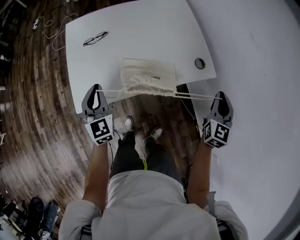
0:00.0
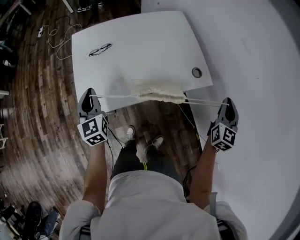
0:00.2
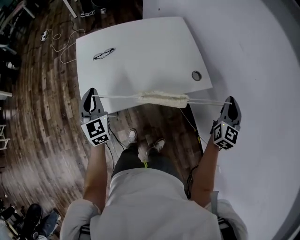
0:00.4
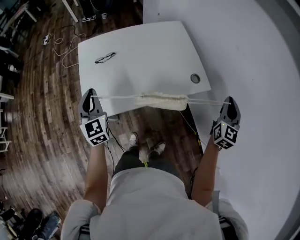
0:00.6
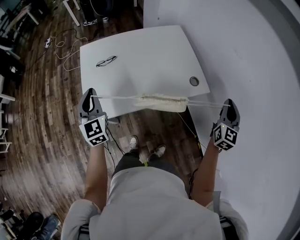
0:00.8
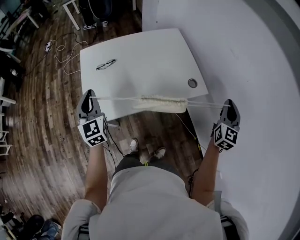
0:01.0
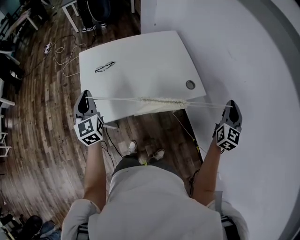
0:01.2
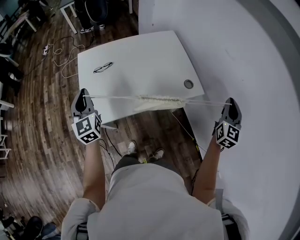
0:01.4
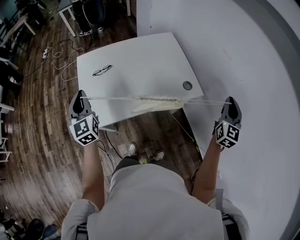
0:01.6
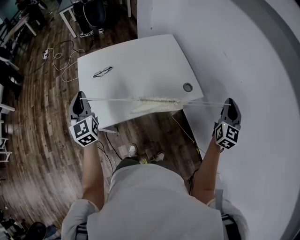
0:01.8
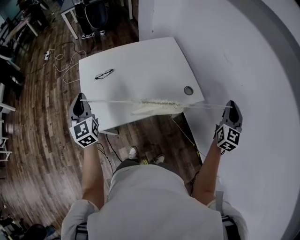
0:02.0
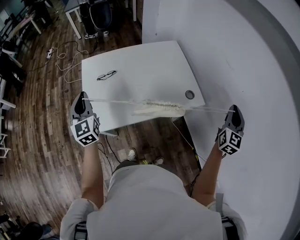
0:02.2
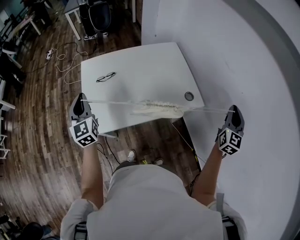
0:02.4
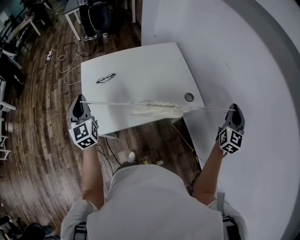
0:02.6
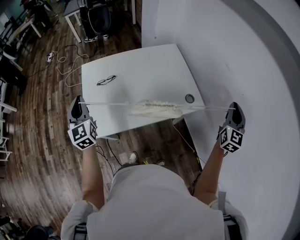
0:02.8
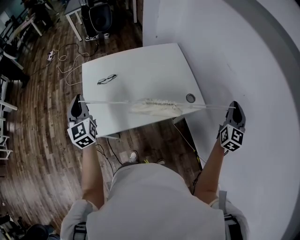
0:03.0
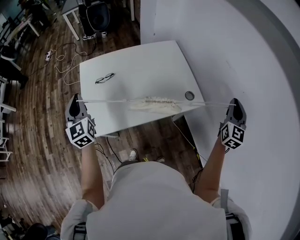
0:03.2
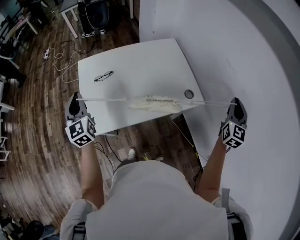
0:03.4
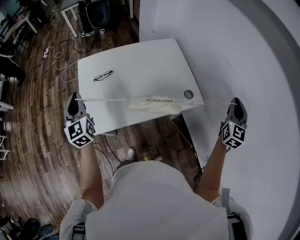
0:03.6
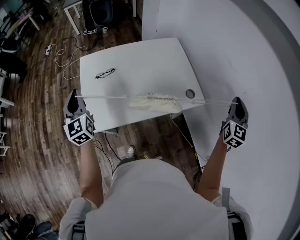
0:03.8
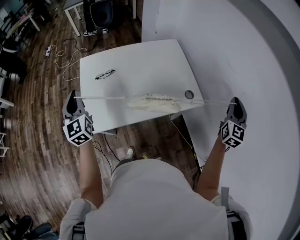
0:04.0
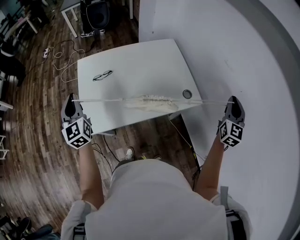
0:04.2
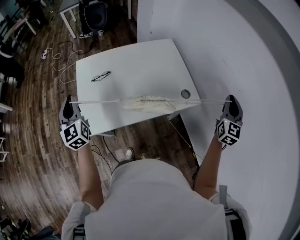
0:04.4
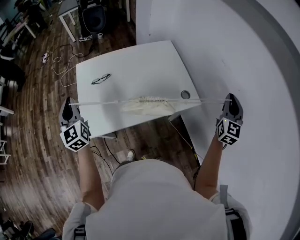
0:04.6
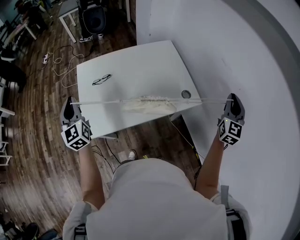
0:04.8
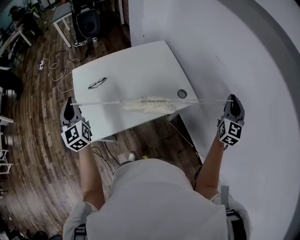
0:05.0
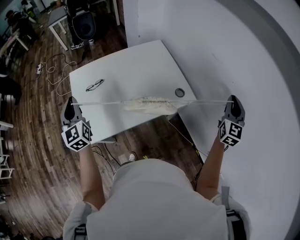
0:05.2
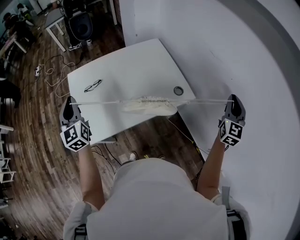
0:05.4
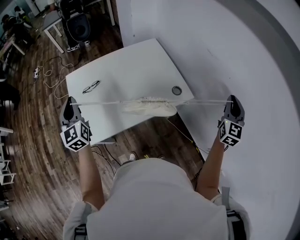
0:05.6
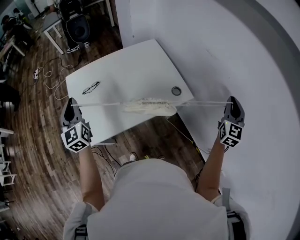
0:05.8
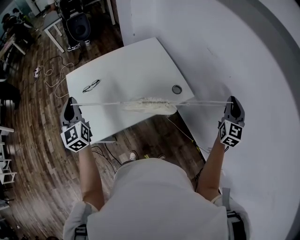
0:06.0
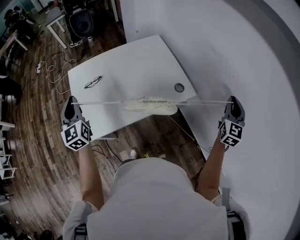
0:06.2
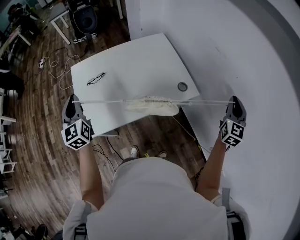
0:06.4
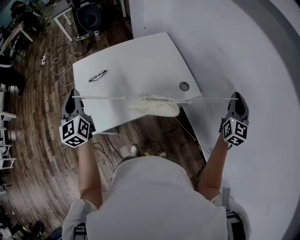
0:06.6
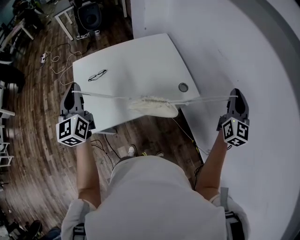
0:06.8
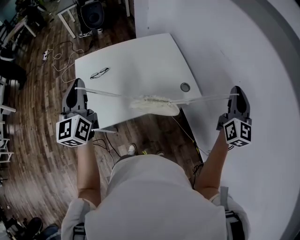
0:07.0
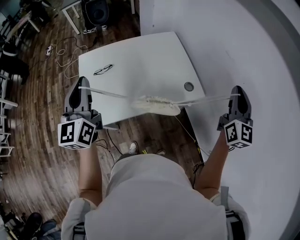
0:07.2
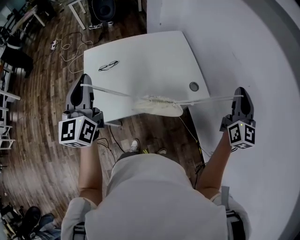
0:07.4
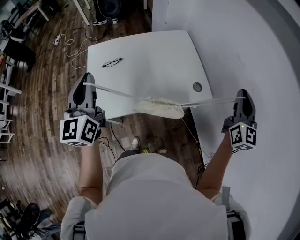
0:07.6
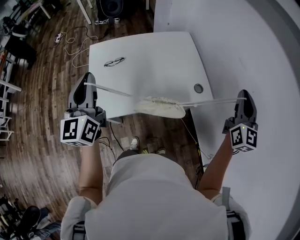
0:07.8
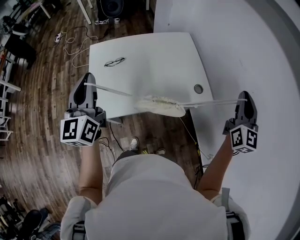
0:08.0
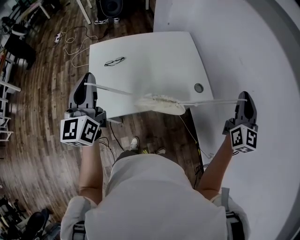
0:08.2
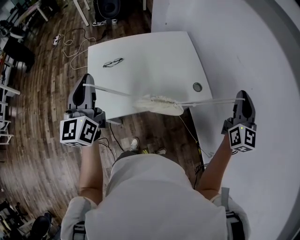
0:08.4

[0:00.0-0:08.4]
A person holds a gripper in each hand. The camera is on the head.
0:00.0 to 0:01.4: The left gripper travels upward by about 15 cm; the right gripper heads upward and to the right, covering roughly 15 cm.
0:01.4 to 0:02.8: The right gripper changes place by some 5 cm.
0:02.8 to 0:04.2: The two grippers keep their place.
0:04.2 to 0:05.6: The right gripper travels backward by roughly 5 cm, while the left gripper shifts approximately 5 cm to the right.
0:05.6 to 0:07.0: The left gripper travels upward and to the right by approximately 10 cm; the right gripper heads to the left and upward, covering about 10 cm, and swivels roughly 20 degrees.
0:07.0 to 0:08.4: The right gripper shifts roughly 5 cm to the left.

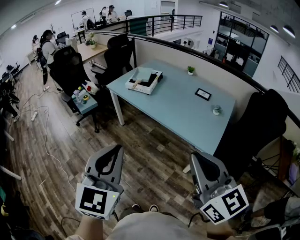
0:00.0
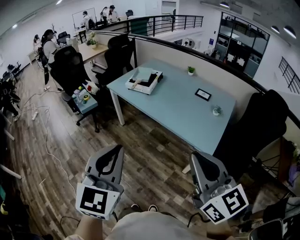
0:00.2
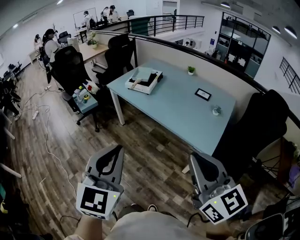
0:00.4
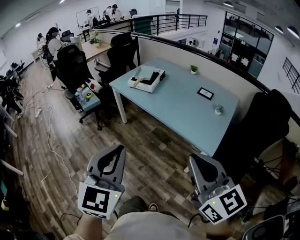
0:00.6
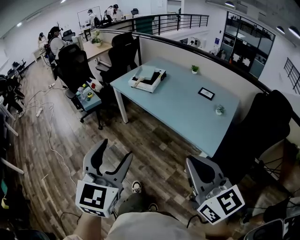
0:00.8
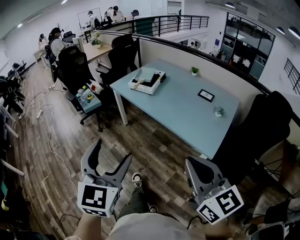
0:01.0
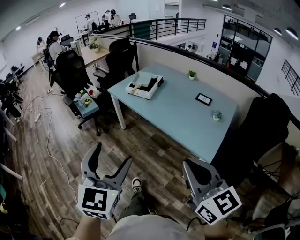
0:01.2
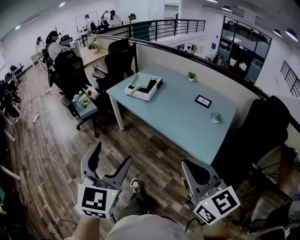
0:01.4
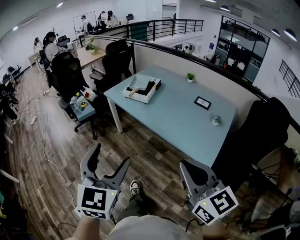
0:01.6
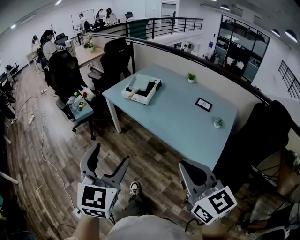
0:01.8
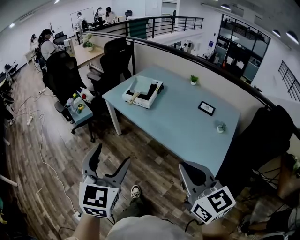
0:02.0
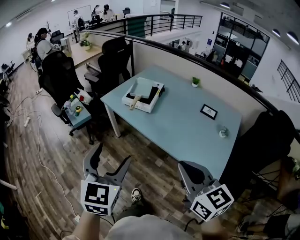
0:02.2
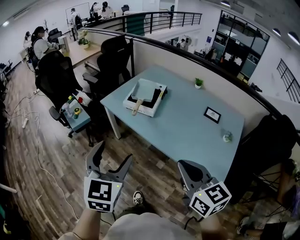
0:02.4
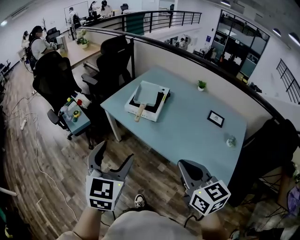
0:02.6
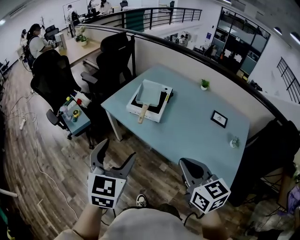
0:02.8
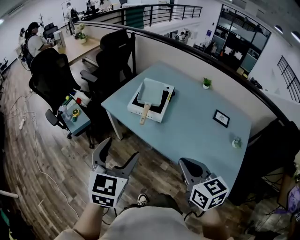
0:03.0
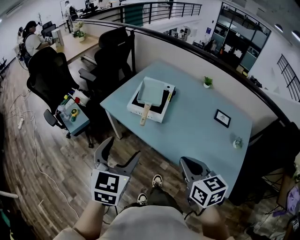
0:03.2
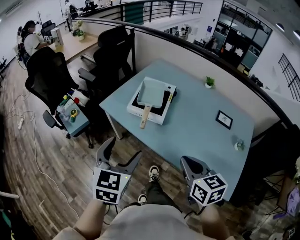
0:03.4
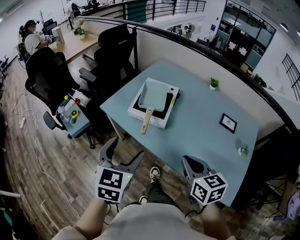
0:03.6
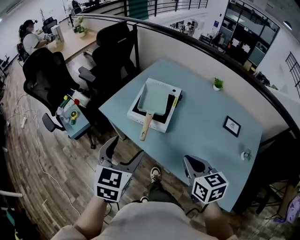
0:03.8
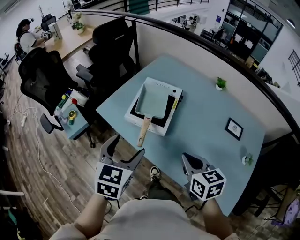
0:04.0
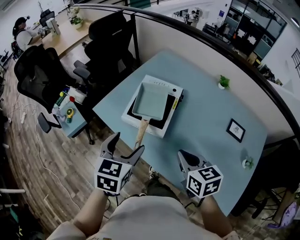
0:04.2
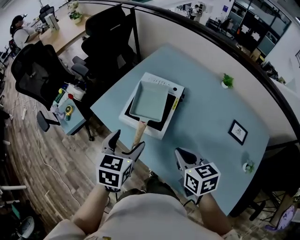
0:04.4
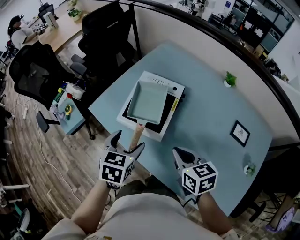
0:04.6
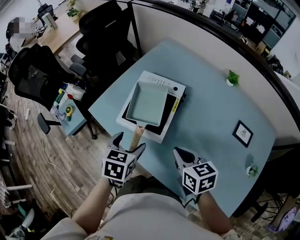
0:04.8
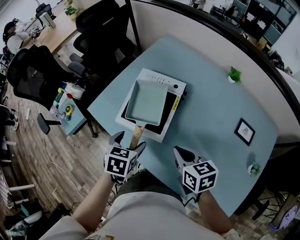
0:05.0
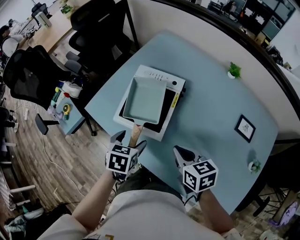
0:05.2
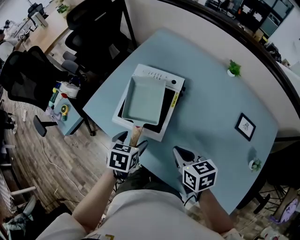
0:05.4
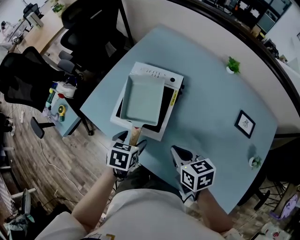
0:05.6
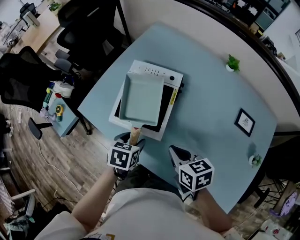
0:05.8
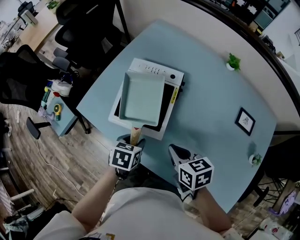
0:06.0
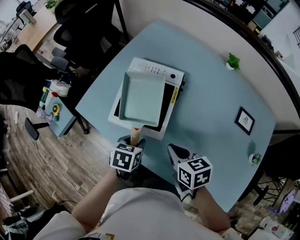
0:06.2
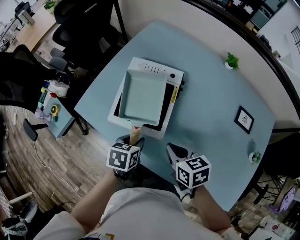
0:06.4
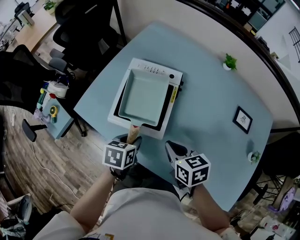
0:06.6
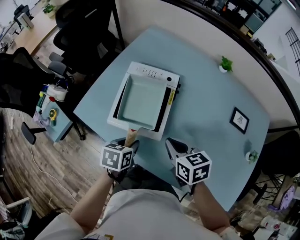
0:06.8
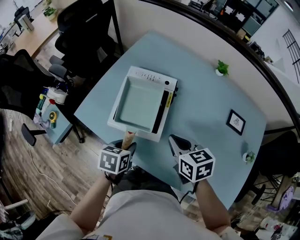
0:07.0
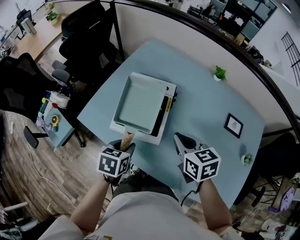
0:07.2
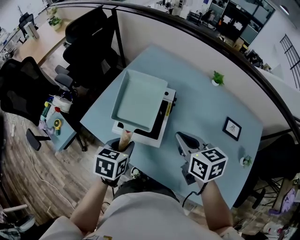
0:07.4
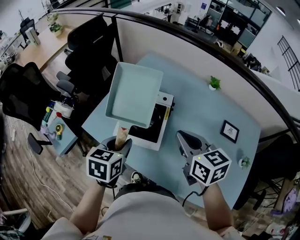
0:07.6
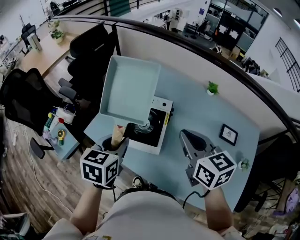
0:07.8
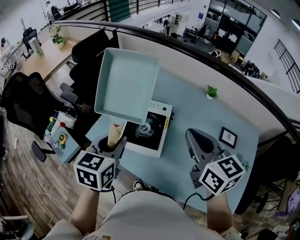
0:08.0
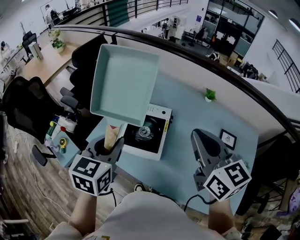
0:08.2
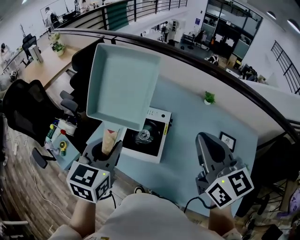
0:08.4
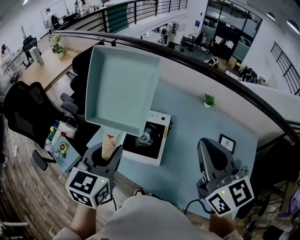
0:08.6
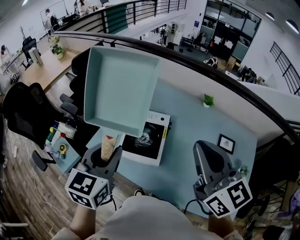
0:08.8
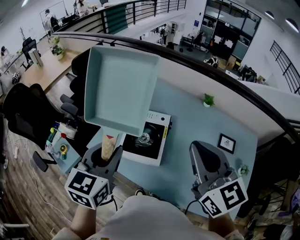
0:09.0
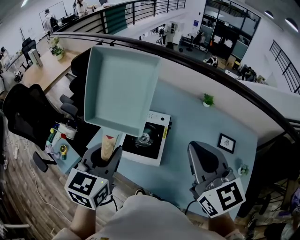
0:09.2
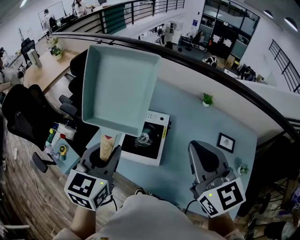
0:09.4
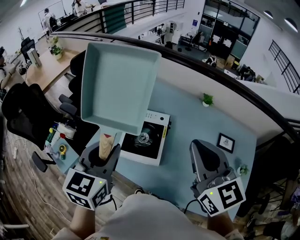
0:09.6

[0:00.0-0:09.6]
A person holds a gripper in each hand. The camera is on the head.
0:00.0 to 0:01.6: Both grippers travel together forward, some 5 cm. The left gripper opens its fingers.
0:01.6 to 0:03.2: Both grippers are carried forward, about 40 cm. The right gripper turns by about 20 degrees.
0:03.2 to 0:04.8: The two grippers go some 35 cm forward and downward. The left gripper rotates some 30 degrees.
0:04.8 to 0:06.4: Both grippers move downward, approximately 10 cm. The left gripper closes its fingers.
0:06.4 to 0:08.0: The grippers both shift upward by roughly 30 cm. The right gripper swivels roughly 40 degrees. The left gripper swivels some 30 degrees.
0:08.0 to 0:09.6: The grippers both shift upward by about 5 cm.

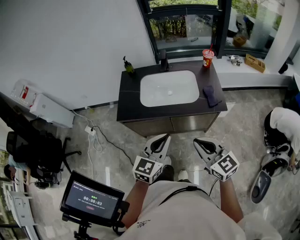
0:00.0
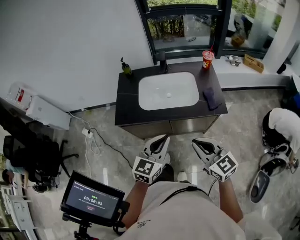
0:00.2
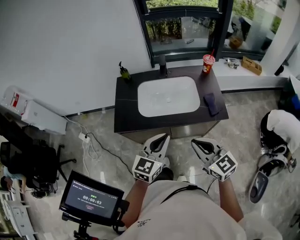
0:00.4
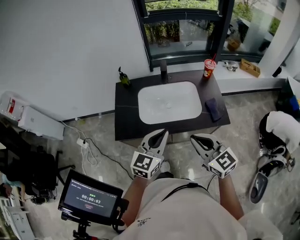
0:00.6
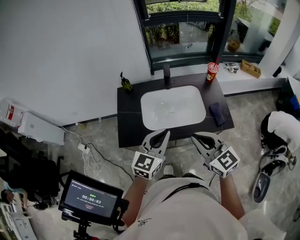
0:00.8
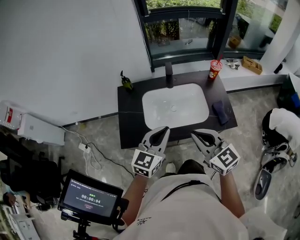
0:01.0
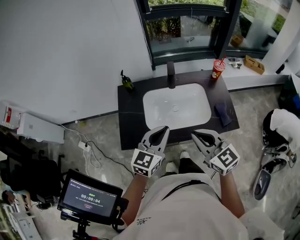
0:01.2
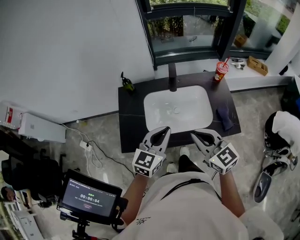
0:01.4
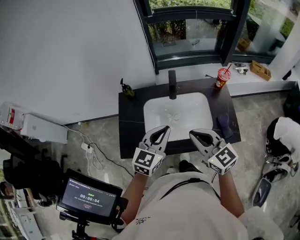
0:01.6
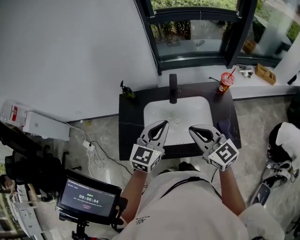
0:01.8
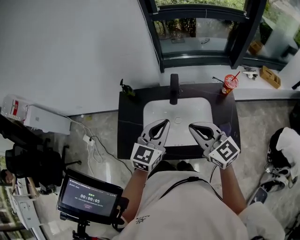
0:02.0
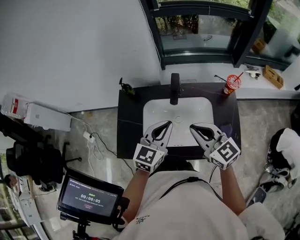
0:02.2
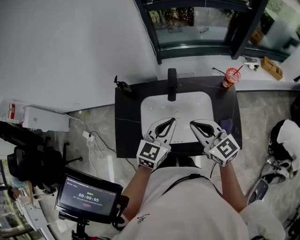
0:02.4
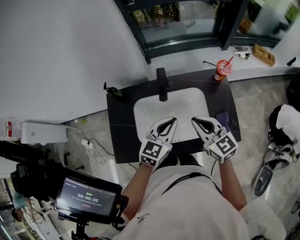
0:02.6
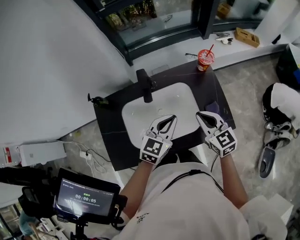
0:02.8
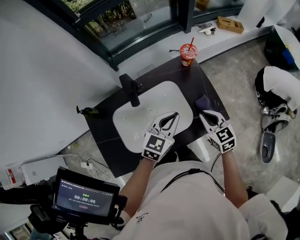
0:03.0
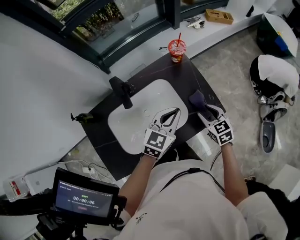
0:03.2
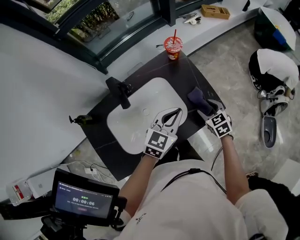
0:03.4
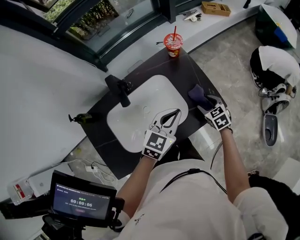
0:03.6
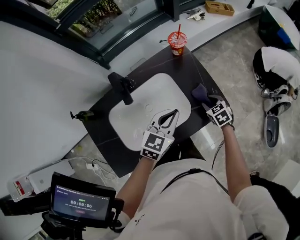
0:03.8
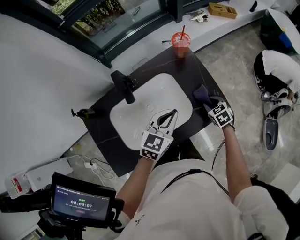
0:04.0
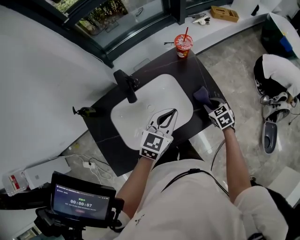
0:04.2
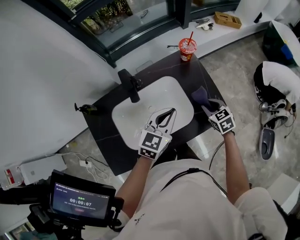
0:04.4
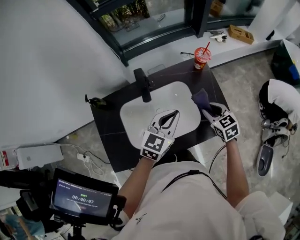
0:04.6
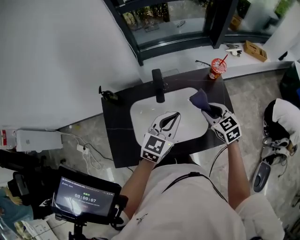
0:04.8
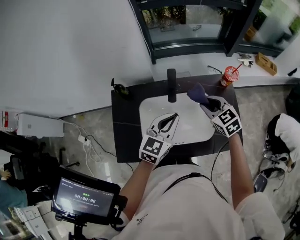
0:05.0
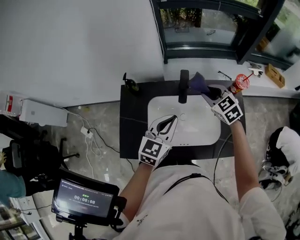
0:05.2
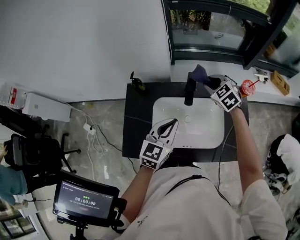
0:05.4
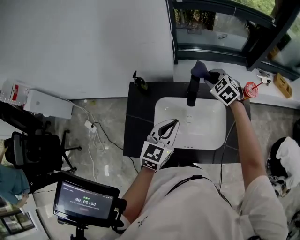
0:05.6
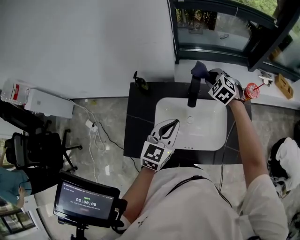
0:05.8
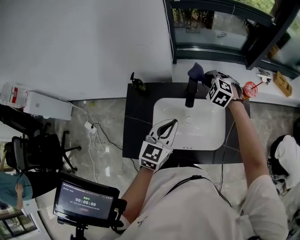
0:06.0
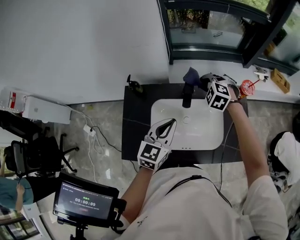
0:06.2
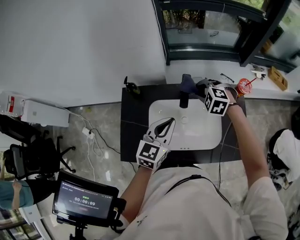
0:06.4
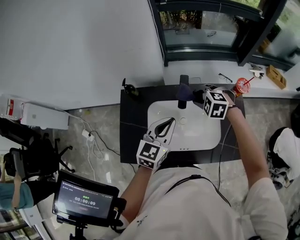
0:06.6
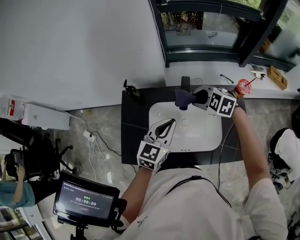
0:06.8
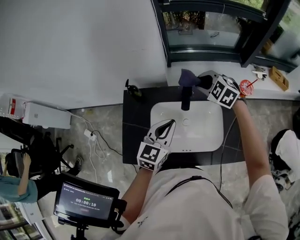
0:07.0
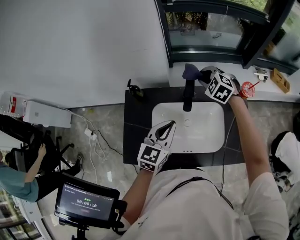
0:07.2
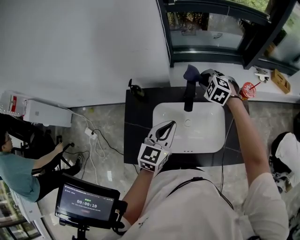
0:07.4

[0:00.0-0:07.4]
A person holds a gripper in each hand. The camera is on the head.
0:00.0 to 0:01.4: Both grippers travel together forward, approximately 25 cm.
0:01.4 to 0:03.0: The left gripper moves roughly 25 cm, and turns by roughly 30 degrees. Meanwhile the right gripper moves roughly 30 cm, and changes its angle by approximately 40 degrees.
0:03.0 to 0:04.4: The right gripper moves downward, some 5 cm, and opens.
0:04.4 to 0:06.0: The right gripper shifts by roughly 35 cm, and rotates around the line of its fingers by approximately 60 degrees, counterclockwise from behind, while the left gripper changes place by roughly 20 cm, and swivels some 30 degrees.
0:06.0 to 0:07.4: The right gripper reaches about 10 cm backward, then returns.
